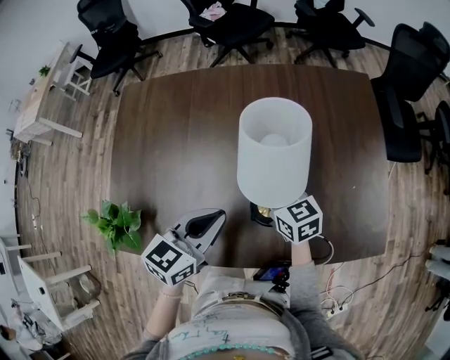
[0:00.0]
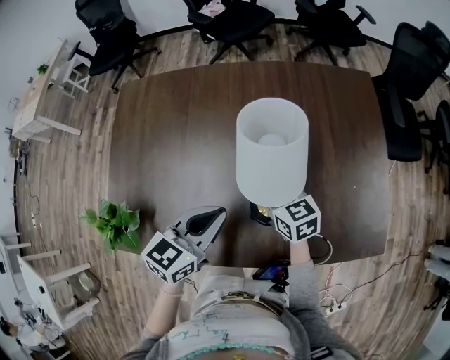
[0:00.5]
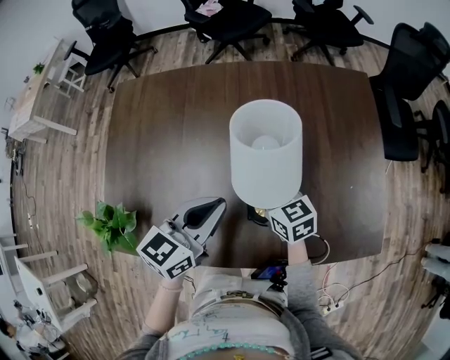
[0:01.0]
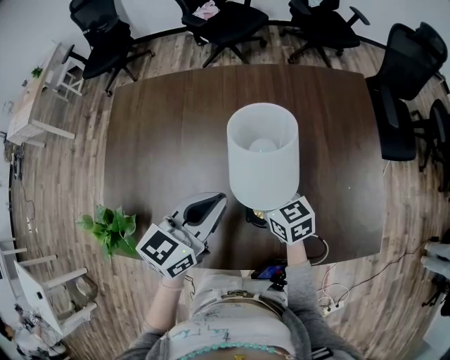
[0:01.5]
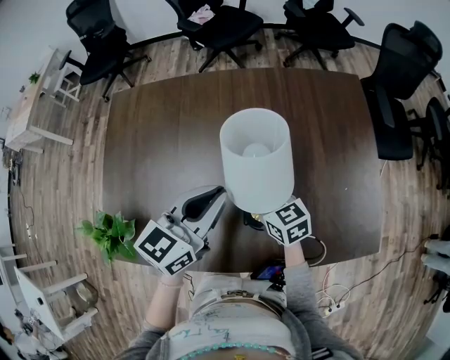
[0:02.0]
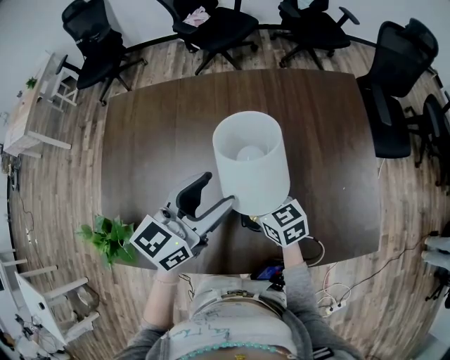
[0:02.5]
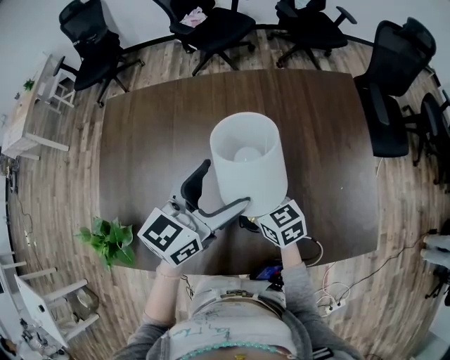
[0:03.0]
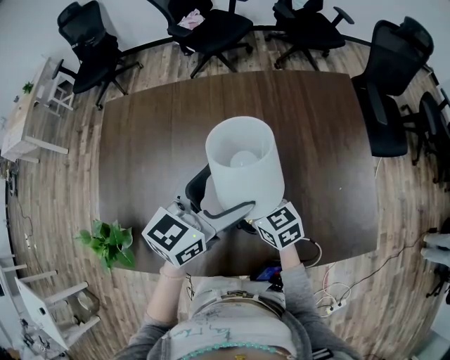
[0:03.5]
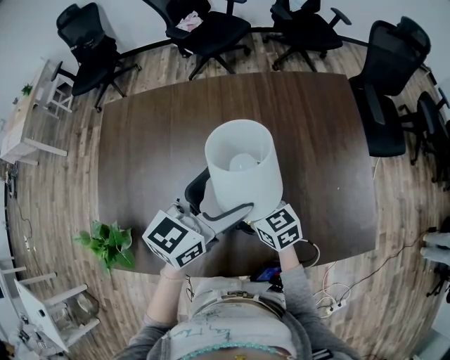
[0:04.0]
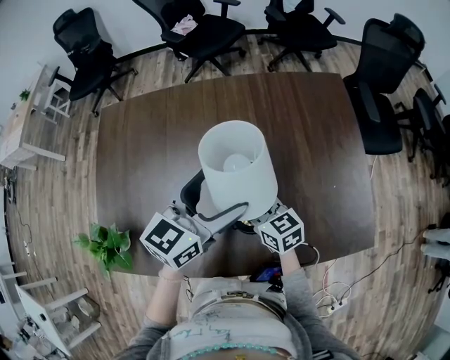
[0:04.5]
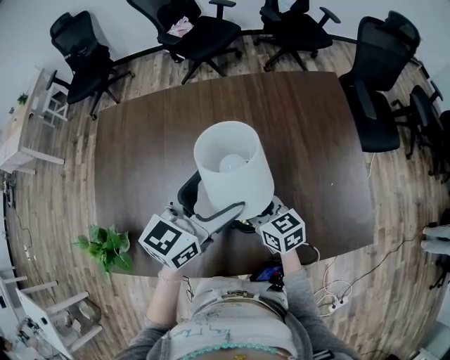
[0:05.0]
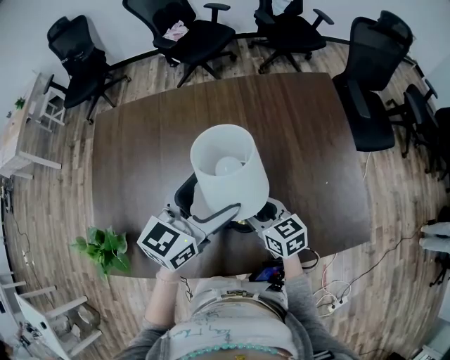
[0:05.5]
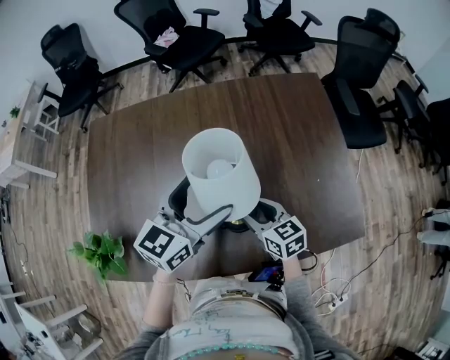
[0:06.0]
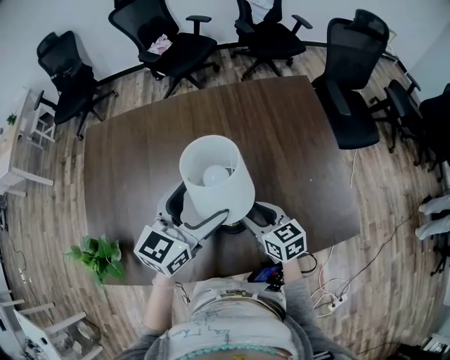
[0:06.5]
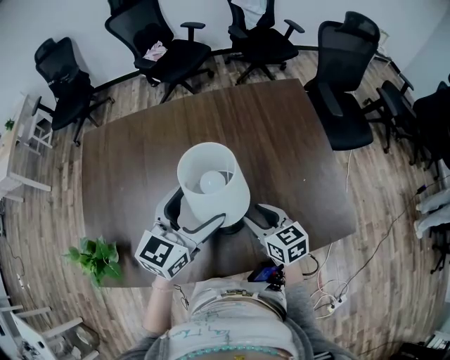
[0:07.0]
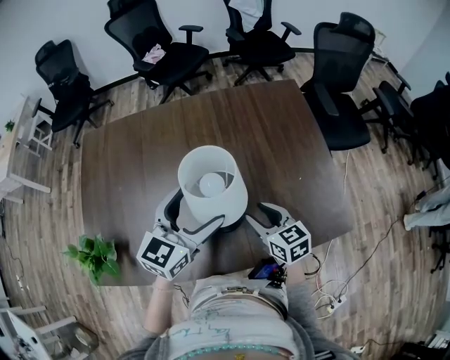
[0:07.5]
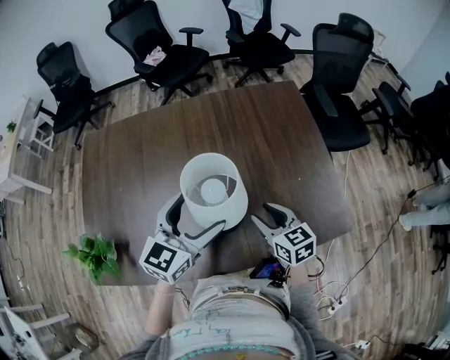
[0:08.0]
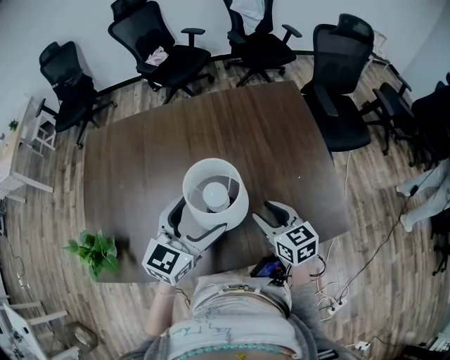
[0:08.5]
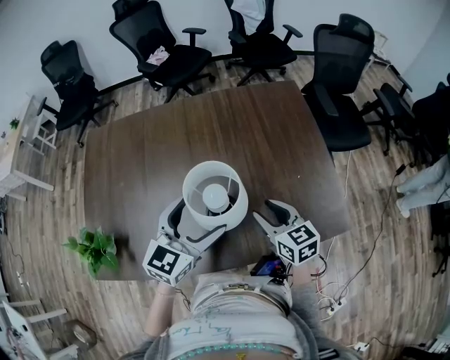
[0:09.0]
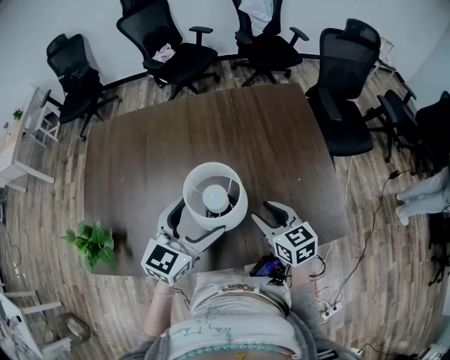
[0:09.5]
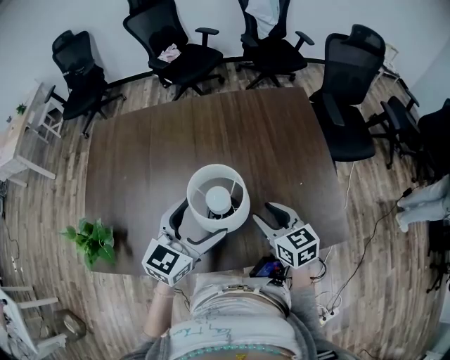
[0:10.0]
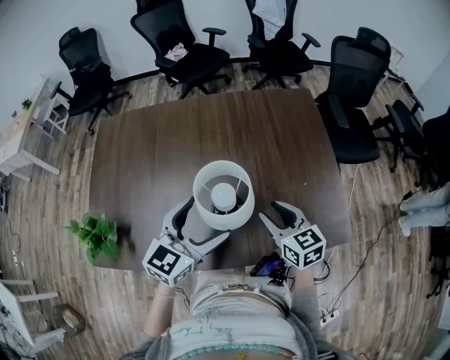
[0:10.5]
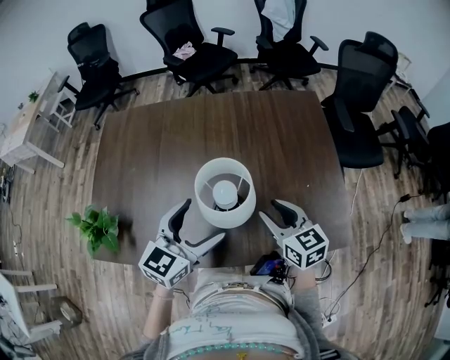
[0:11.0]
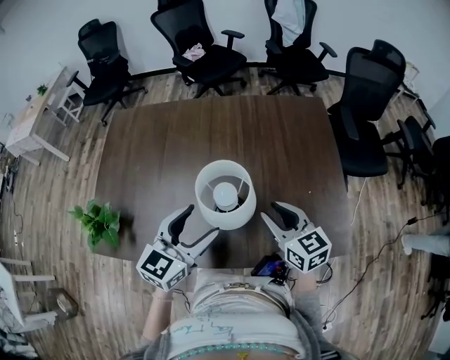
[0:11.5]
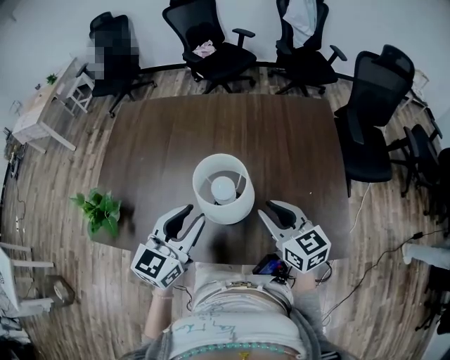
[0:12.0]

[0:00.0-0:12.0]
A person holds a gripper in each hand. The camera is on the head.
0:00.0 to 0:02.0: The left gripper travels forward and upward by some 10 cm.
0:02.0 to 0:04.0: The left gripper moves roughly 5 cm, and opens its fingers.
0:04.0 to 0:06.0: The right gripper shifts some 10 cm to the right and backward, and opens.
0:06.0 to 0:08.0: The left gripper goes roughly 5 cm backward, while the right gripper is displaced to the right by some 10 cm.
0:08.0 to 0:10.0: The grippers make only small movements.
0:10.0 to 0:12.0: The left gripper shifts by approximately 5 cm, and closes its fingers; the right gripper goes about 5 cm upward.

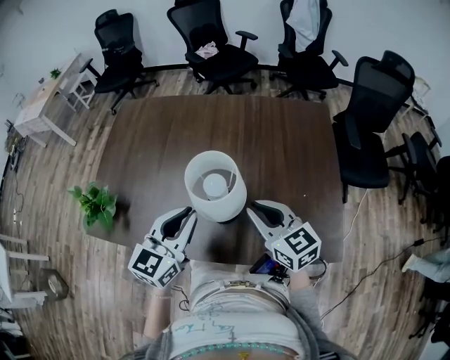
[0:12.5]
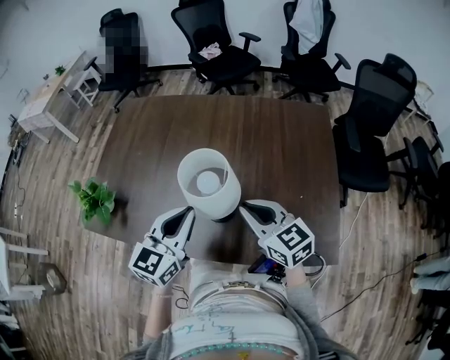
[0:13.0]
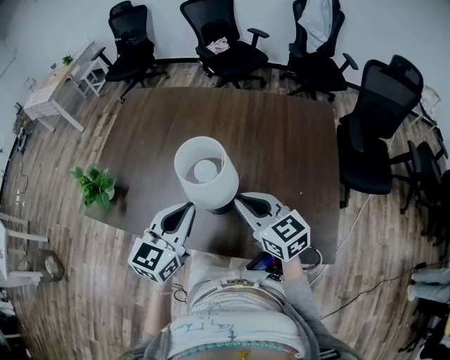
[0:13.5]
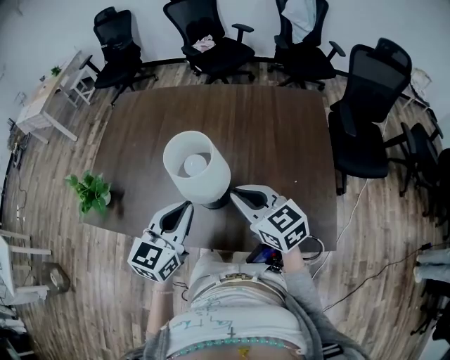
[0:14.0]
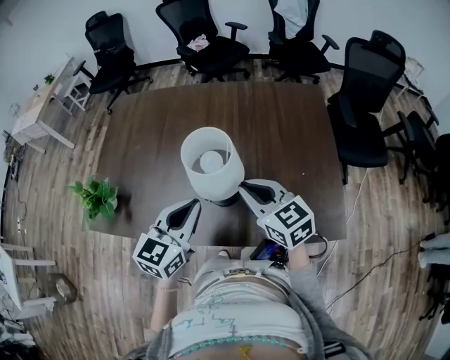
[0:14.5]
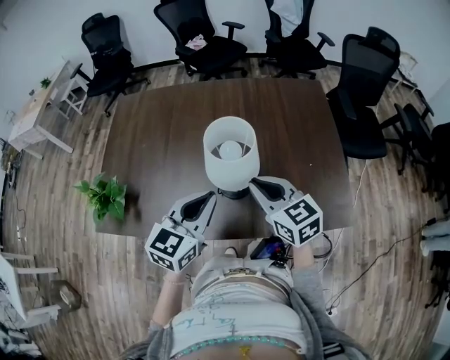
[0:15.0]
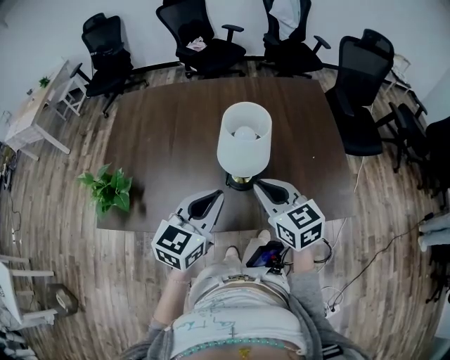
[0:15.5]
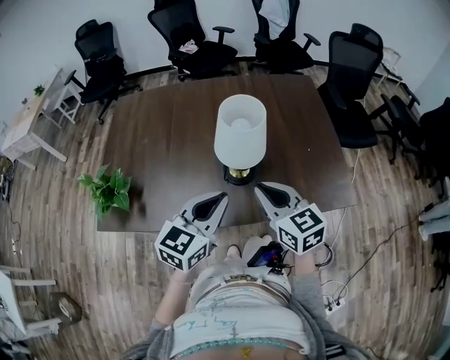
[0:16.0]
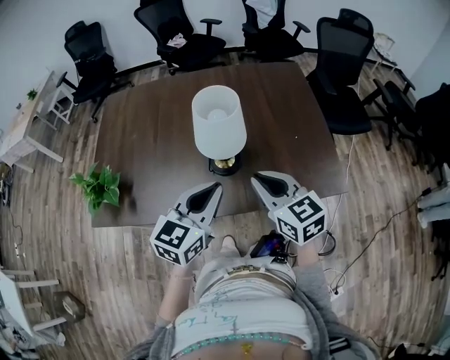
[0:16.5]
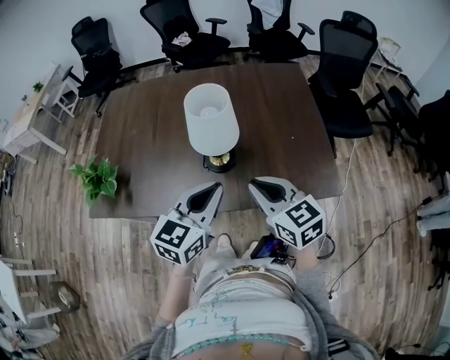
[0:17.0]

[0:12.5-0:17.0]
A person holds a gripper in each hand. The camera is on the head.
0:12.5 to 0:14.5: The grippers stay close to where they were, moving slightly.
0:14.5 to 0:17.0: The grippers both shift backward by approximately 15 cm.

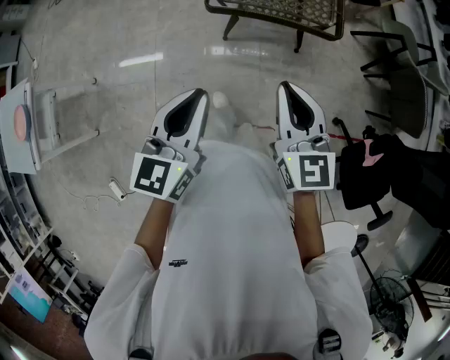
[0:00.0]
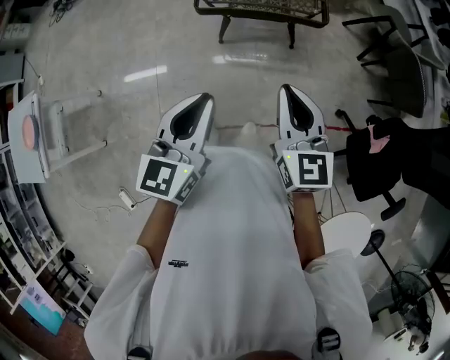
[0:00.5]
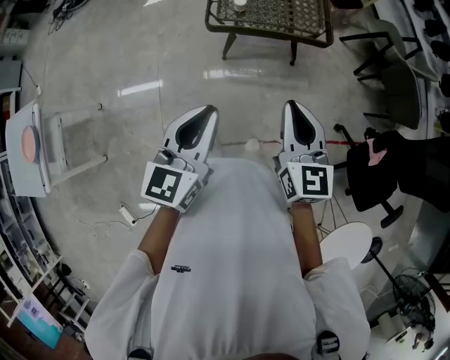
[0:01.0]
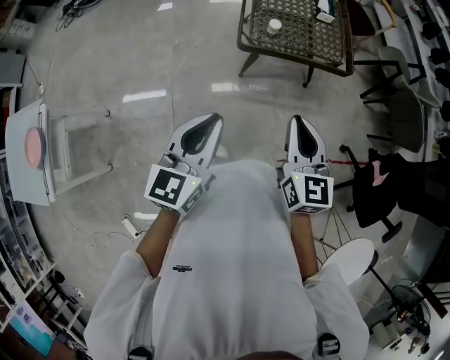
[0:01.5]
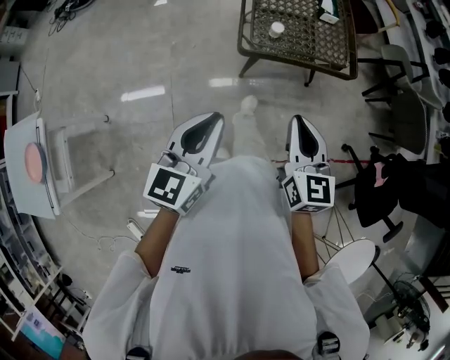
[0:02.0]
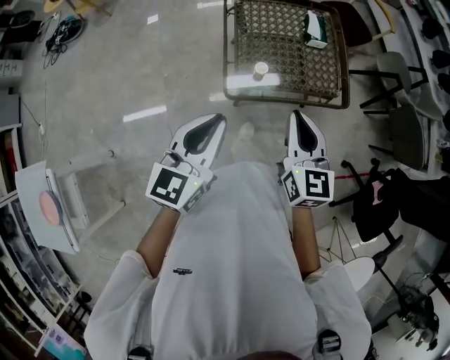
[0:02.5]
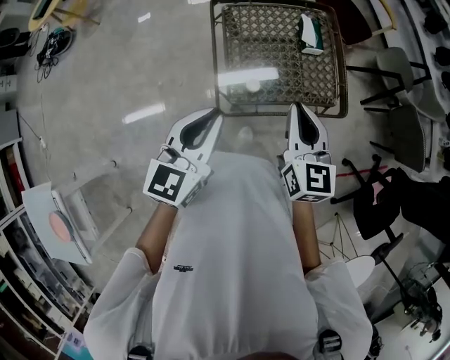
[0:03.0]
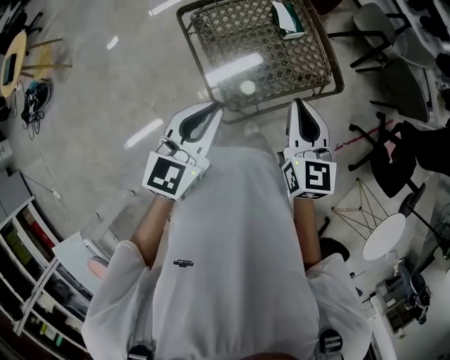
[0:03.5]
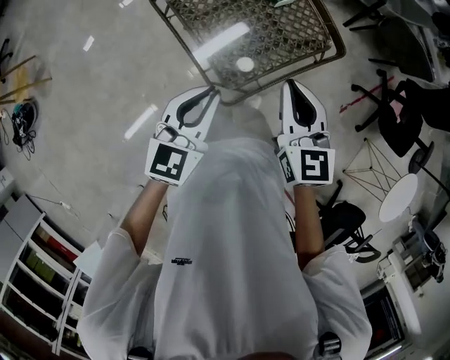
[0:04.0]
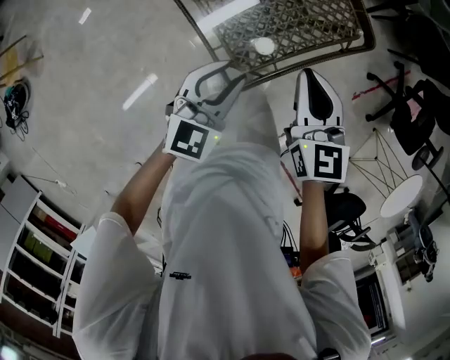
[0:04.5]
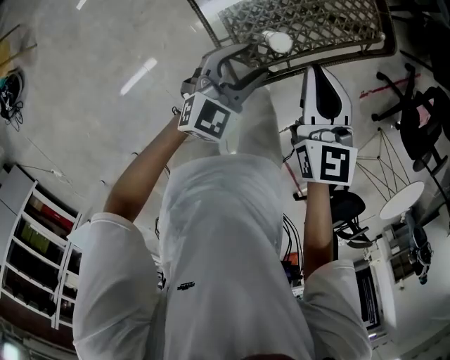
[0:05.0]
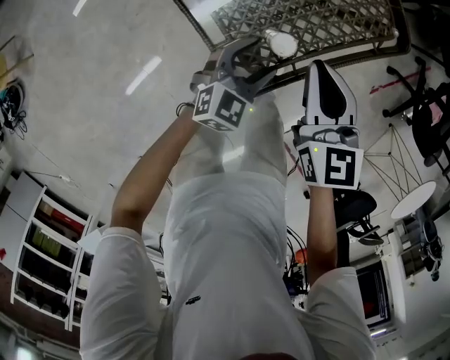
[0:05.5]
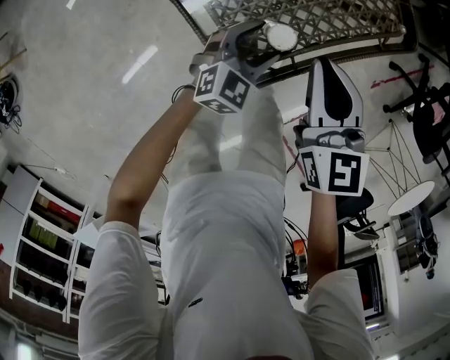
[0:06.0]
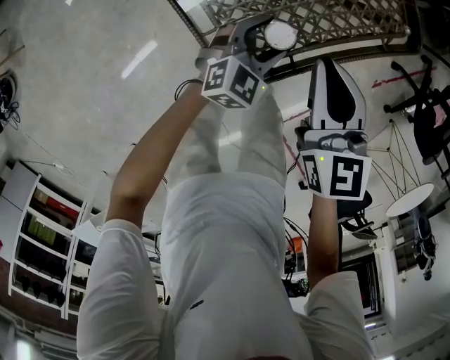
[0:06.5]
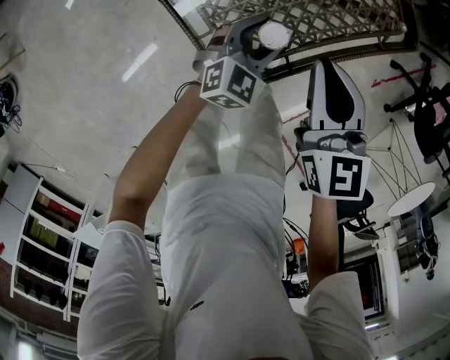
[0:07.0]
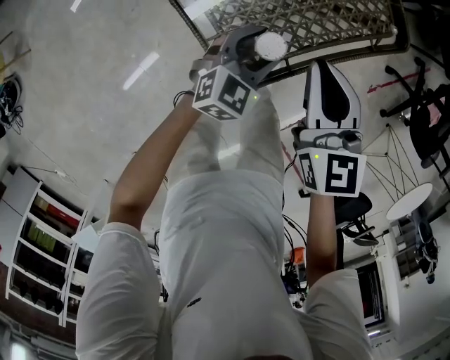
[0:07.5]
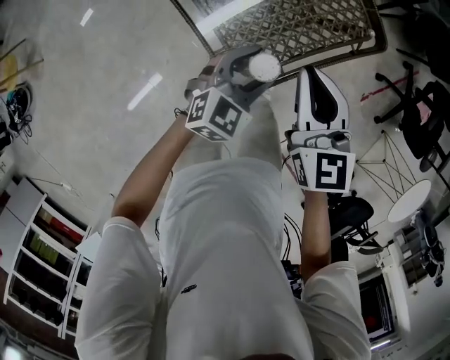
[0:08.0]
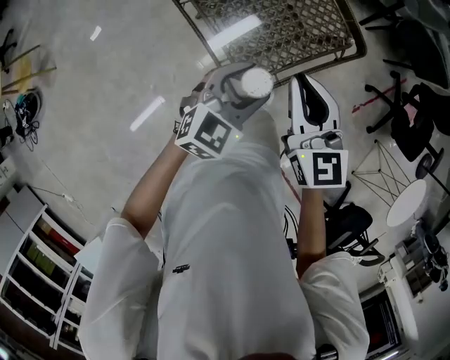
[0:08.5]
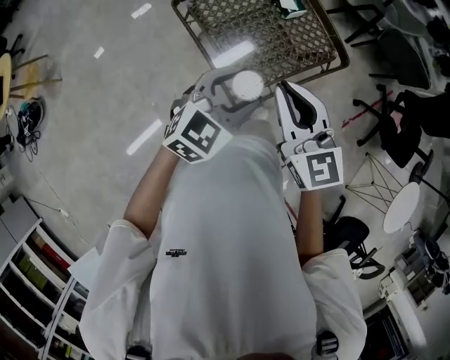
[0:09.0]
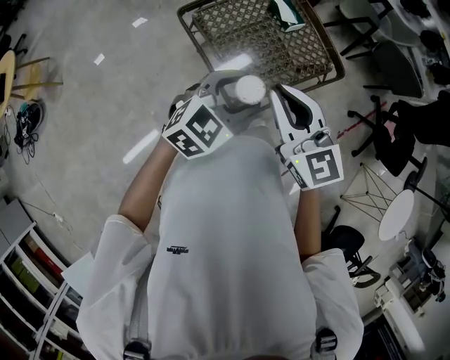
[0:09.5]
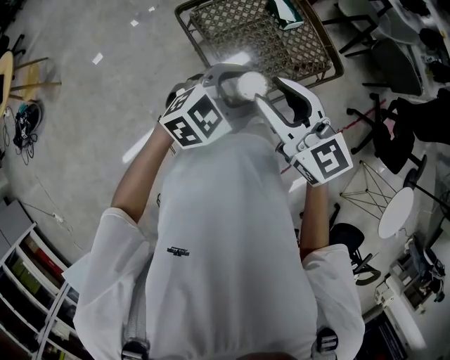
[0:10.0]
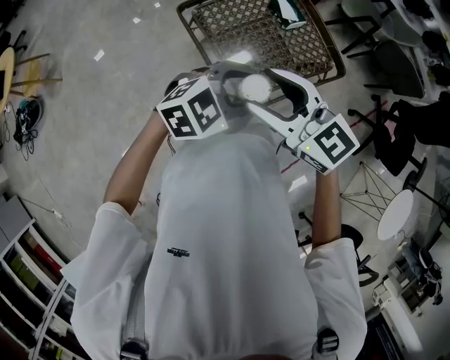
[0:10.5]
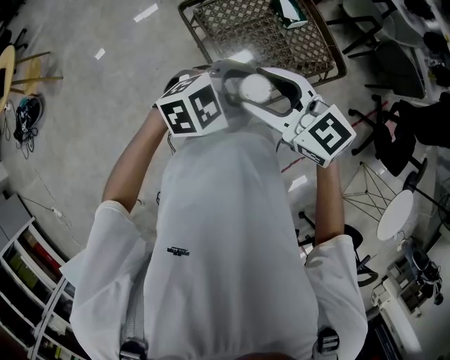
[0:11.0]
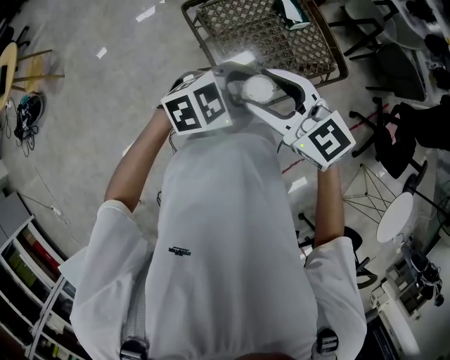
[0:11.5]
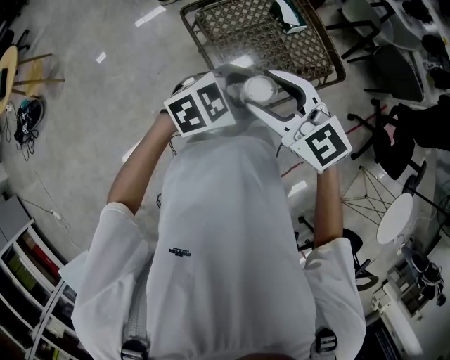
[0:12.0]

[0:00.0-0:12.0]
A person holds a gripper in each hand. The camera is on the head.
0:00.0 to 0:02.0: The grippers both shift to the left by approximately 15 cm.
0:02.0 to 0:04.0: The right gripper changes place by about 35 cm, and swivels approximately 30 degrees. The left gripper ends up about 40 cm from where it was, and rotates about 40 degrees.
0:04.0 to 0:06.0: The left gripper shifts some 35 cm downward, changes its angle by about 20 degrees, and opens up; the right gripper shifts some 20 cm downward.
0:06.0 to 0:08.0: The two grippers go about 10 cm upward.
0:08.0 to 0:10.0: The left gripper moves upward, about 20 cm, while the right gripper heads upward, backward and to the left, covering approximately 20 cm, changes its angle by roughly 30 degrees, and opens its fingers.
0:10.0 to 0:12.0: The right gripper opens its fingers.
